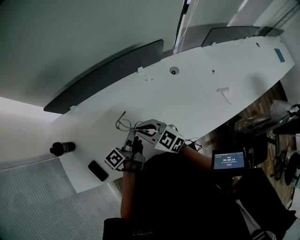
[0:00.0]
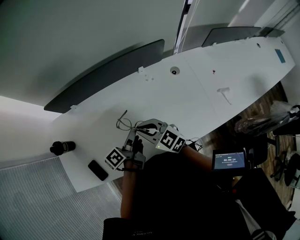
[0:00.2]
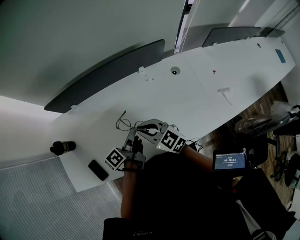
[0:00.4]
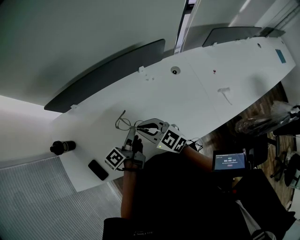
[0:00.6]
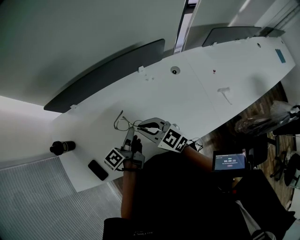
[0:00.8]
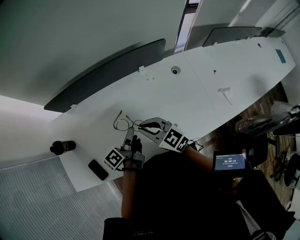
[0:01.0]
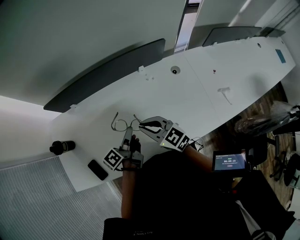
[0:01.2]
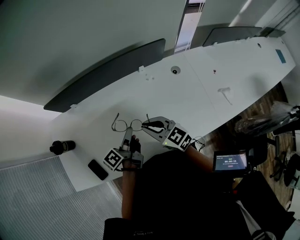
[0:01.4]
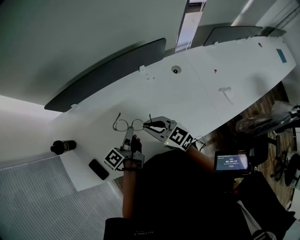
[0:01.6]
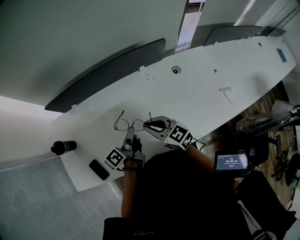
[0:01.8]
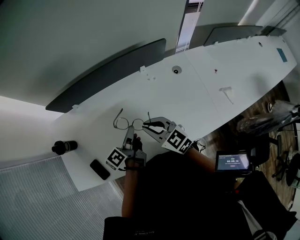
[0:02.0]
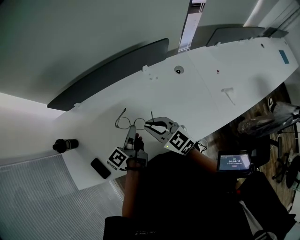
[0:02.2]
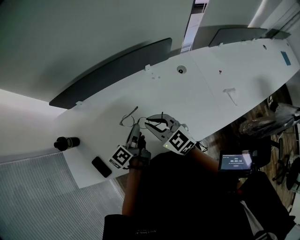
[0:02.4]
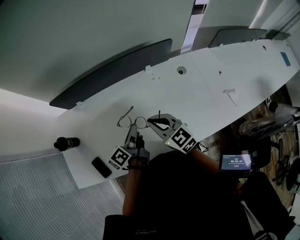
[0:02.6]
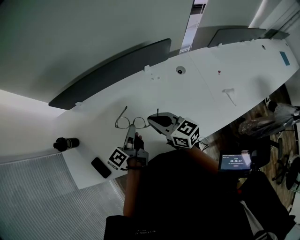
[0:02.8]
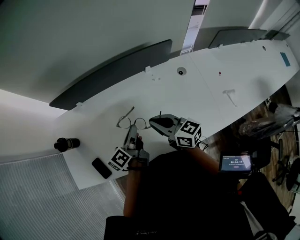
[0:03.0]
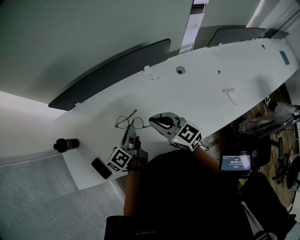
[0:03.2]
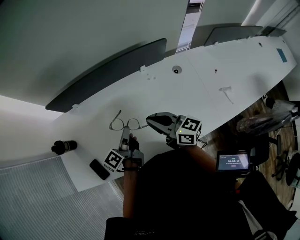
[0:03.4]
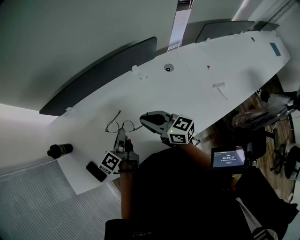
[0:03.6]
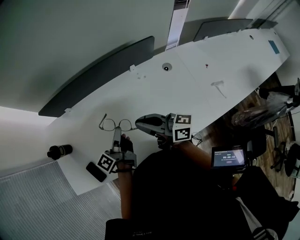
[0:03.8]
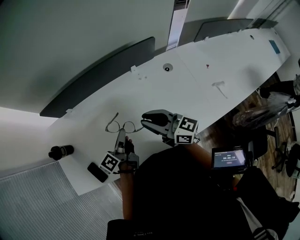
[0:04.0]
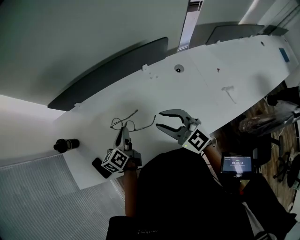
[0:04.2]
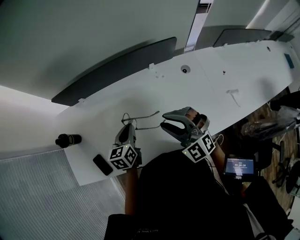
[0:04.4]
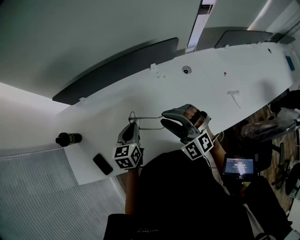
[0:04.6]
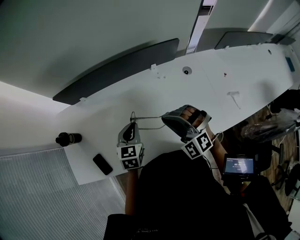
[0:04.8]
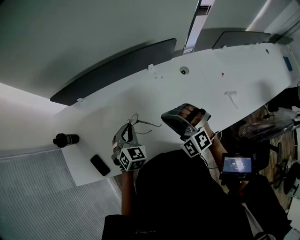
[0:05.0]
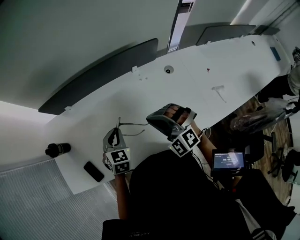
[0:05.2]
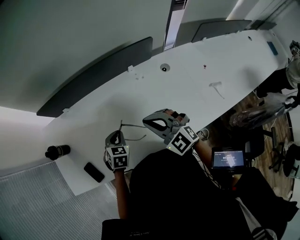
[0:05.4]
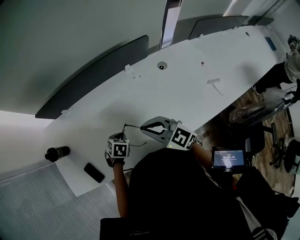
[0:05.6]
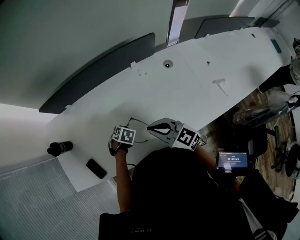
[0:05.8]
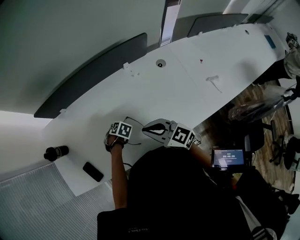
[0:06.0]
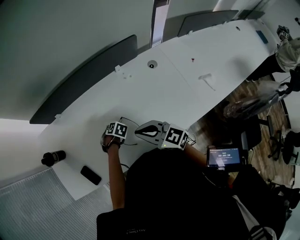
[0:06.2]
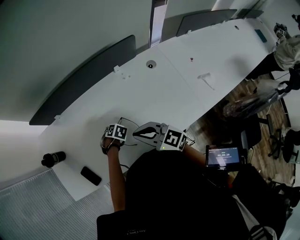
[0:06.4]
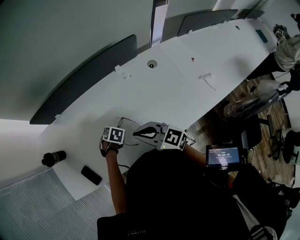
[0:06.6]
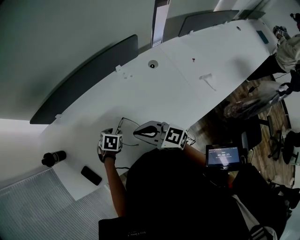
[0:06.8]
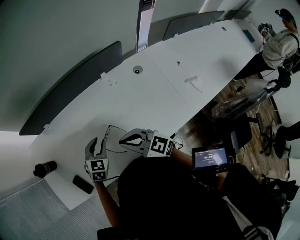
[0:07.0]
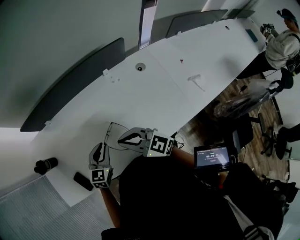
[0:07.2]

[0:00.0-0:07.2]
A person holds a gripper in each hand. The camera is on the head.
0:00.0 to 0:01.4: The grippers make only small movements.
0:01.4 to 0:02.8: The grippers stay close to where they were, moving slightly.
0:02.8 to 0:04.4: The left gripper rolls clockwise, seen from behind, by approximately 50 degrees, while the right gripper moves roughly 5 cm, rotates around the line of its fingers by roughly 70 degrees, counterclockwise from behind, and opens its fingers.
0:04.4 to 0:05.8: The left gripper travels downward by some 20 cm, and tilts its fingers approximately 50 degrees downward; the right gripper heads downward, covering some 5 cm, twists roughly 50 degrees clockwise, seen from behind, and closes its fingers.
0:05.8 to 0:07.2: The left gripper heads upward, covering some 15 cm, angles its fingers upward, by approximately 50 degrees, and opens, then closes again.

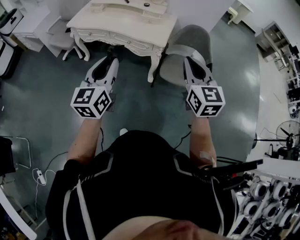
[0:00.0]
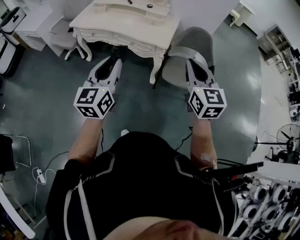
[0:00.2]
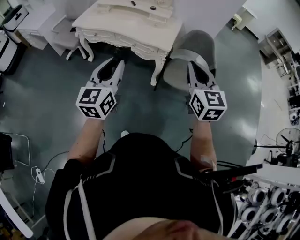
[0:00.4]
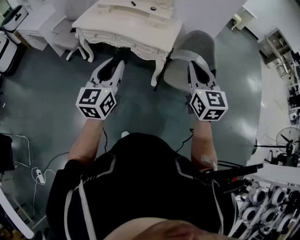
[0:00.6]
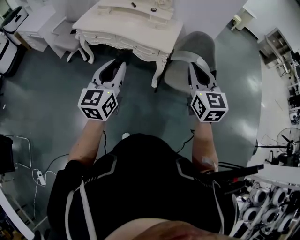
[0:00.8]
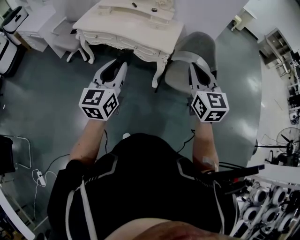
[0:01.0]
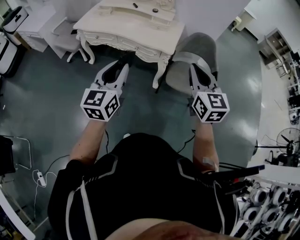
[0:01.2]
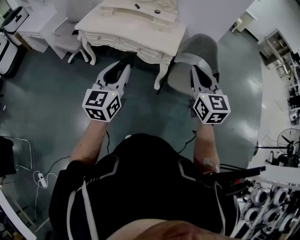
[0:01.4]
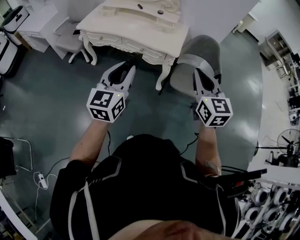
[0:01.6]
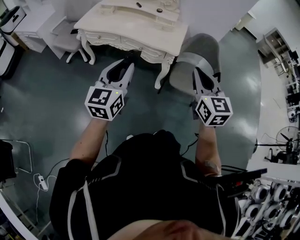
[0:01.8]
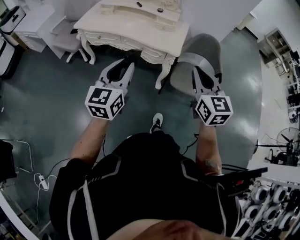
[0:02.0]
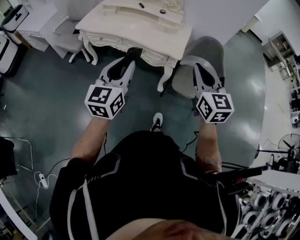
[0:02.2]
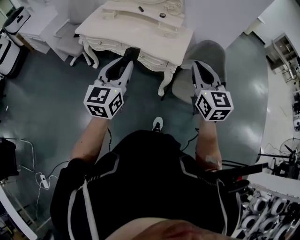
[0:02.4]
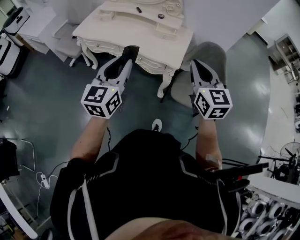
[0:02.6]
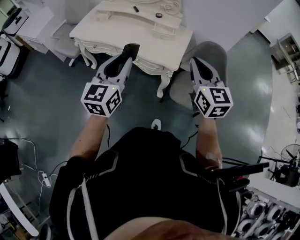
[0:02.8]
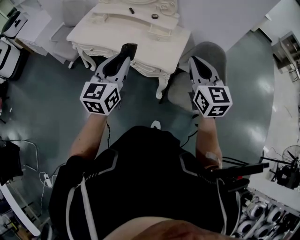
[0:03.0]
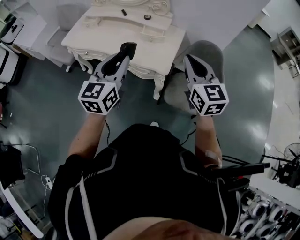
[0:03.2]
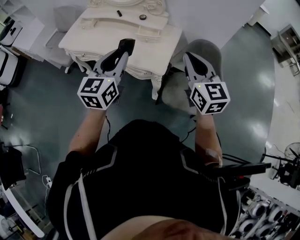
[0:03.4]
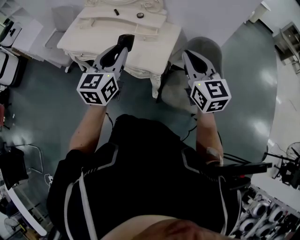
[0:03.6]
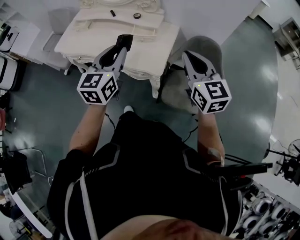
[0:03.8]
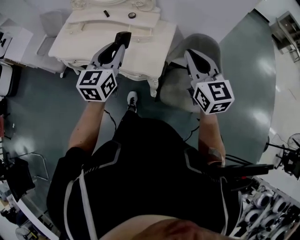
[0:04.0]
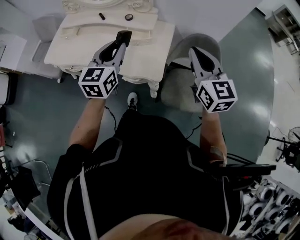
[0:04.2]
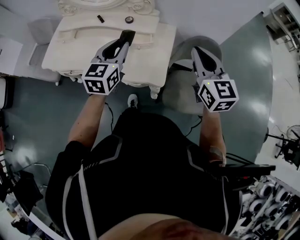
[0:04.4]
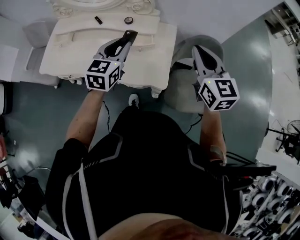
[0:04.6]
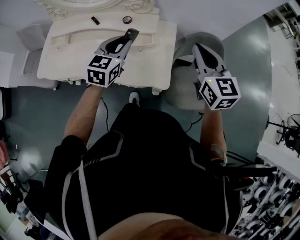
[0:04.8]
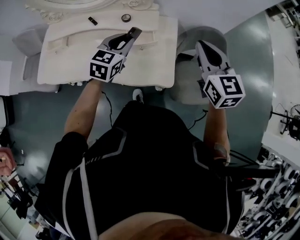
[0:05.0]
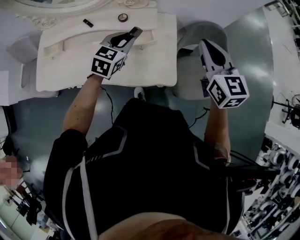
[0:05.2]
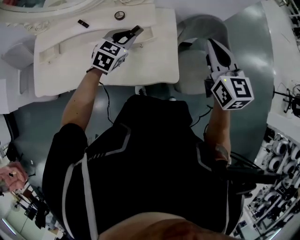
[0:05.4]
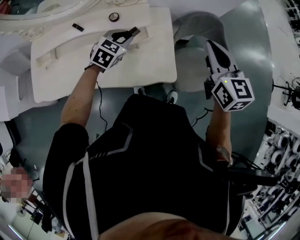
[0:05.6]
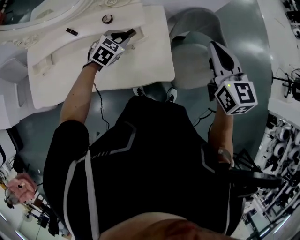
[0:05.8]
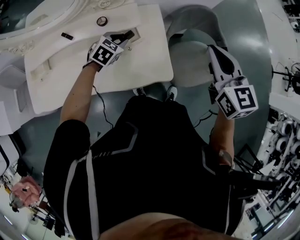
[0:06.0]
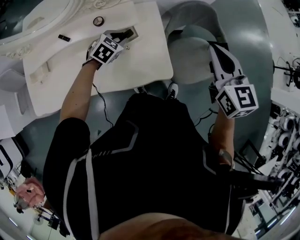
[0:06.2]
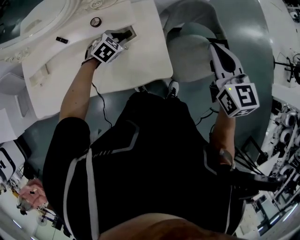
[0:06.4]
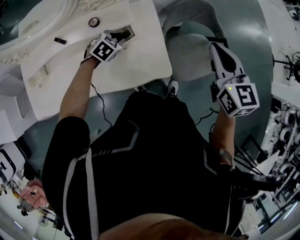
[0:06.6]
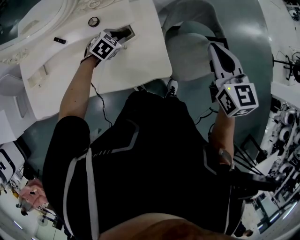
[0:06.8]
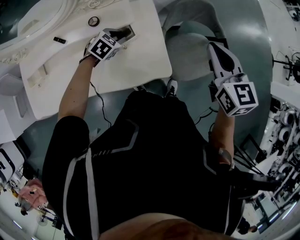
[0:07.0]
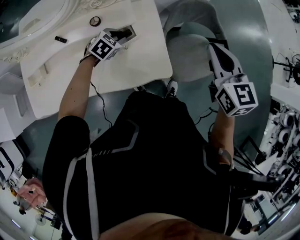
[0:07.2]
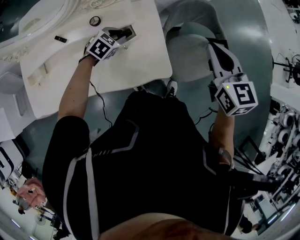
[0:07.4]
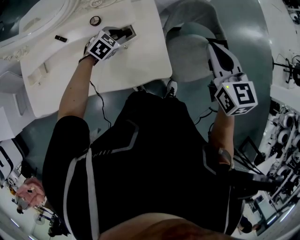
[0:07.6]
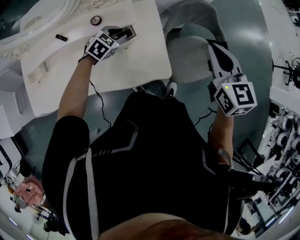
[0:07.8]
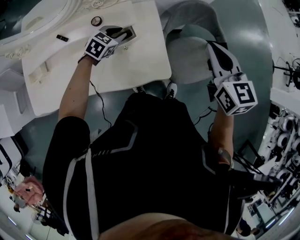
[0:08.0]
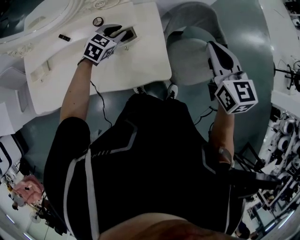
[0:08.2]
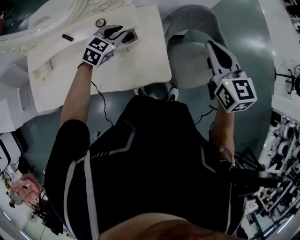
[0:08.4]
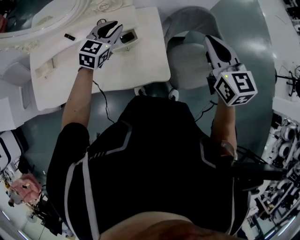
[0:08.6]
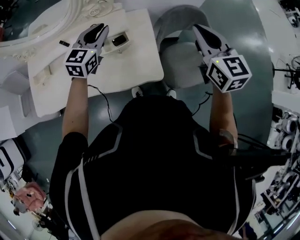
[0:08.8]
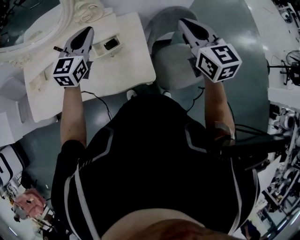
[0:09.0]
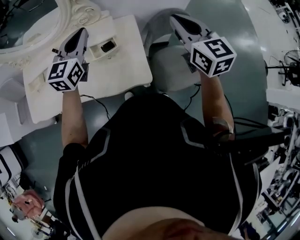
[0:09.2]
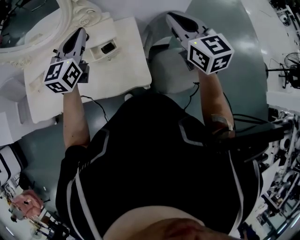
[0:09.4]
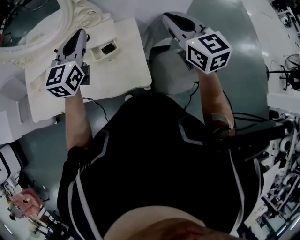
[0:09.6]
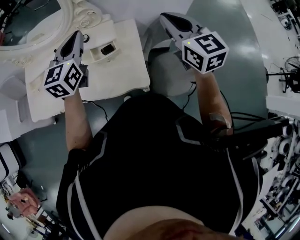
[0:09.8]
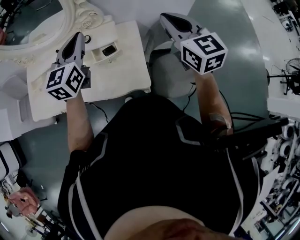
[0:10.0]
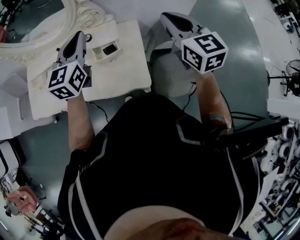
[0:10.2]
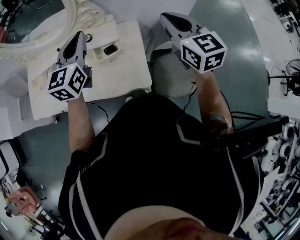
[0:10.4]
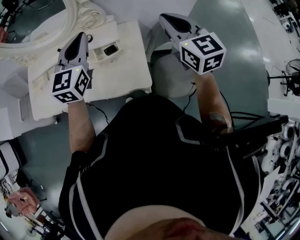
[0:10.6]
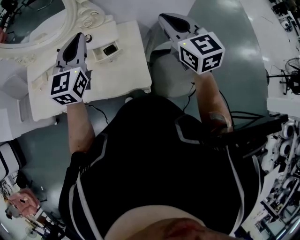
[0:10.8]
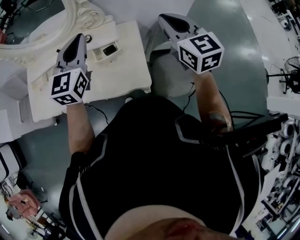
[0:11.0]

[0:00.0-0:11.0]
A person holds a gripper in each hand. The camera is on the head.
0:00.0 to 0:01.6: The right gripper moves approximately 5 cm.
0:01.6 to 0:03.2: The right gripper heads forward, covering approximately 25 cm. Meanwhile the left gripper moves forward and to the right, some 25 cm.
0:03.2 to 0:04.8: The two grippers go roughly 25 cm forward. The left gripper turns by about 30 degrees.
0:04.8 to 0:06.2: The left gripper shifts some 20 cm downward, and angles its fingers downward, by approximately 30 degrees, while the right gripper ends up approximately 5 cm from where it was, and changes its angle by approximately 20 degrees.
0:06.2 to 0:07.8: There are only small adjustments of the grippers.
0:07.8 to 0:09.4: The right gripper travels upward by roughly 10 cm; the left gripper moves upward, roughly 30 cm, tips its fingers upward by about 40 degrees, and closes.
0:09.4 to 0:11.0: The left gripper ends up about 5 cm from where it was.

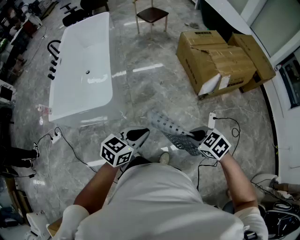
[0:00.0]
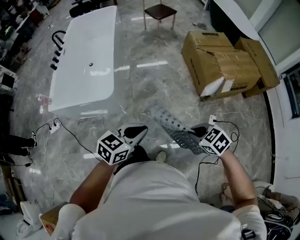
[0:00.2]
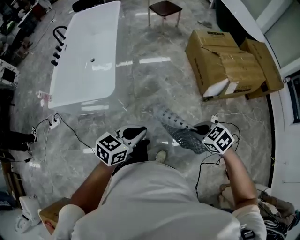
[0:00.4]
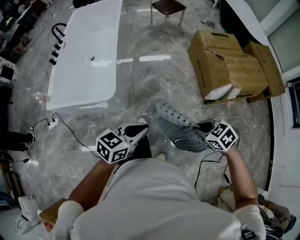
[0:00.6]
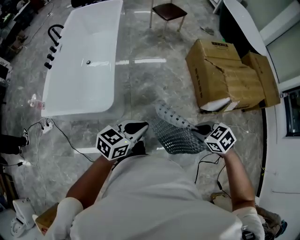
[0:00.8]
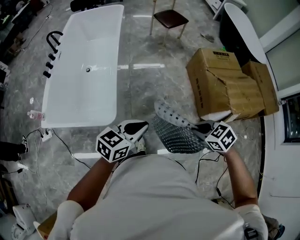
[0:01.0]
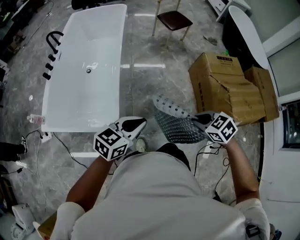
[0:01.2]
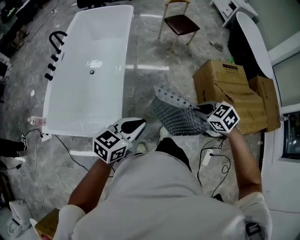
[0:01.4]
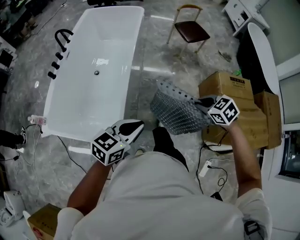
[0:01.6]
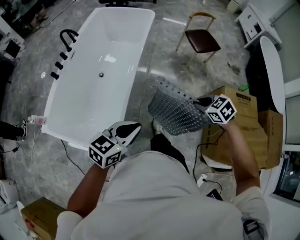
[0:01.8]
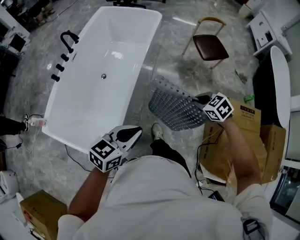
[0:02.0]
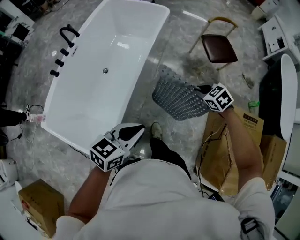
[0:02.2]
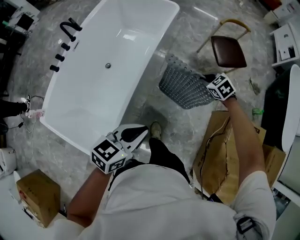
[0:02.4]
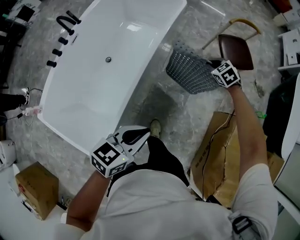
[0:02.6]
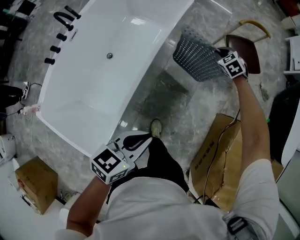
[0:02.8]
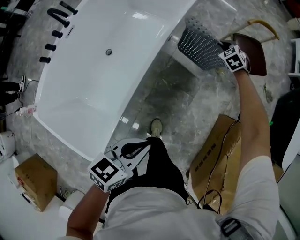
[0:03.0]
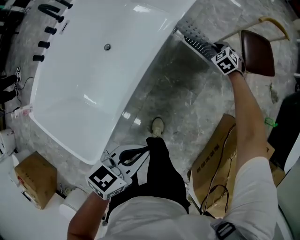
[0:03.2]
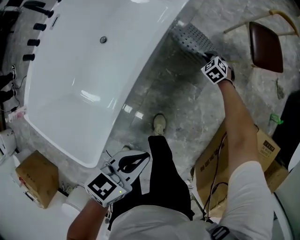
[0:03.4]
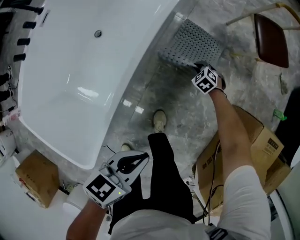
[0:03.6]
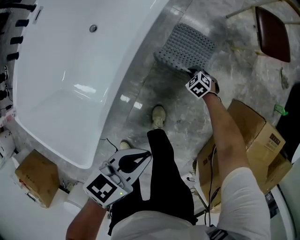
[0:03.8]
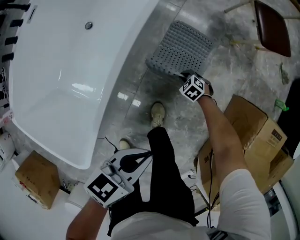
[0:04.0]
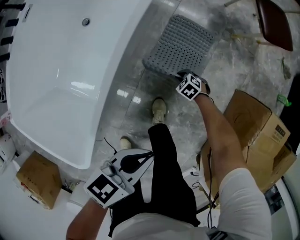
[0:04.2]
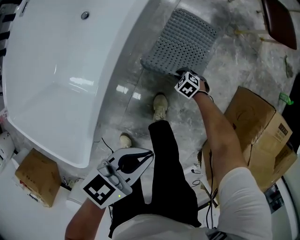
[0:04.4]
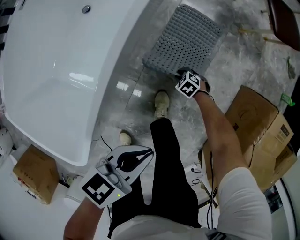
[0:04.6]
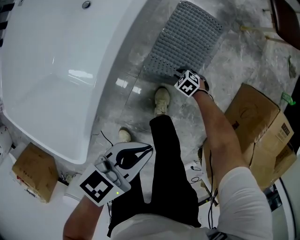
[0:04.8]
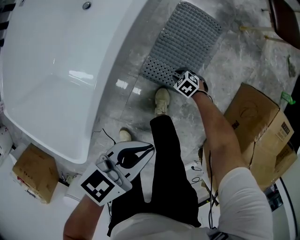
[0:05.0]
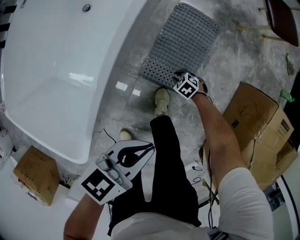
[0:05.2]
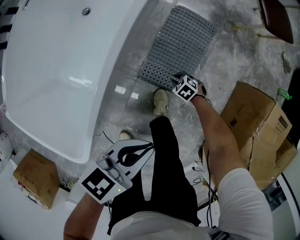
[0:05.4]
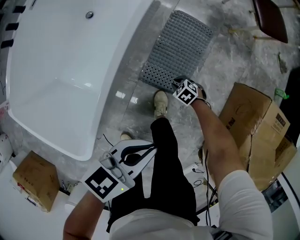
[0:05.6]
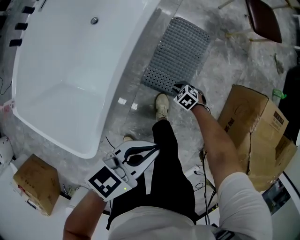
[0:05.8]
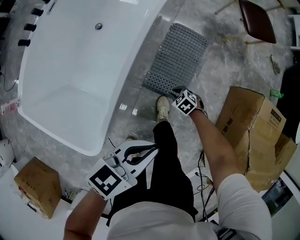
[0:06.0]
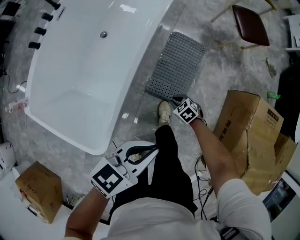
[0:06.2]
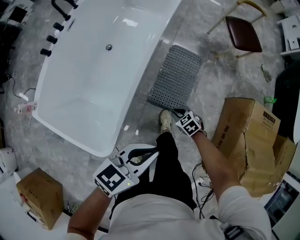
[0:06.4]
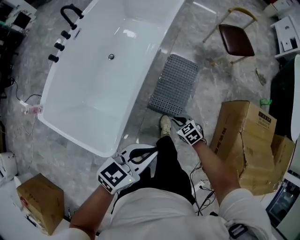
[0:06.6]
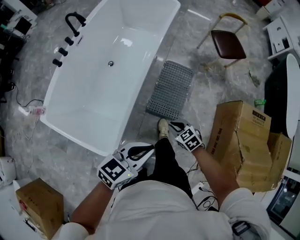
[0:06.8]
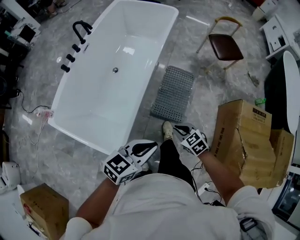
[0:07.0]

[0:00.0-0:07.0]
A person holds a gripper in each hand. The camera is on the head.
0:00.0 to 0:01.4: The two grippers go roughly 40 cm forward.
0:01.4 to 0:02.8: Both grippers are carried forward, some 60 cm. The left gripper changes its angle by some 30 degrees, while the right gripper changes its angle by roughly 30 degrees.
0:02.8 to 0:04.2: The left gripper goes about 20 cm downward. Meanwhile the right gripper is displaced downward by roughly 50 cm, and turns by approximately 30 degrees.
0:04.2 to 0:05.6: The left gripper moves approximately 5 cm. Meanwhile the right gripper shifts by roughly 10 cm.
0:05.6 to 0:07.0: The left gripper is displaced upward by about 20 cm. Meanwhile the right gripper shifts some 40 cm upward, and swivels roughly 30 degrees.
